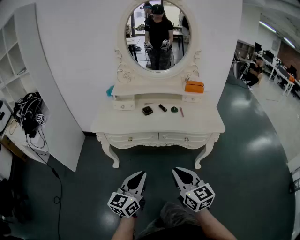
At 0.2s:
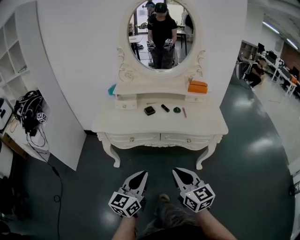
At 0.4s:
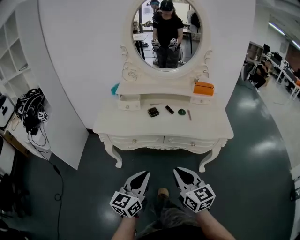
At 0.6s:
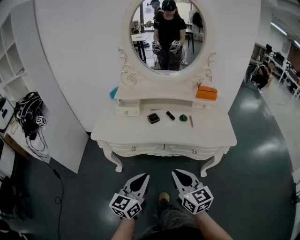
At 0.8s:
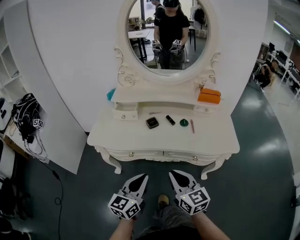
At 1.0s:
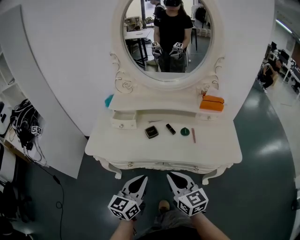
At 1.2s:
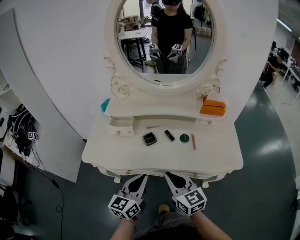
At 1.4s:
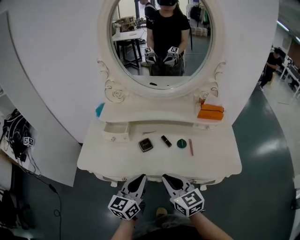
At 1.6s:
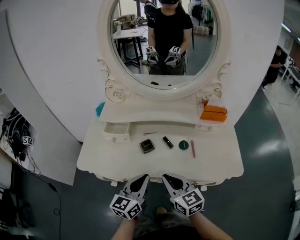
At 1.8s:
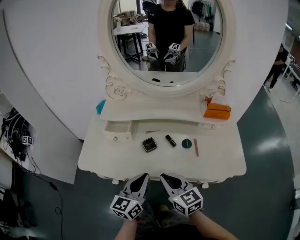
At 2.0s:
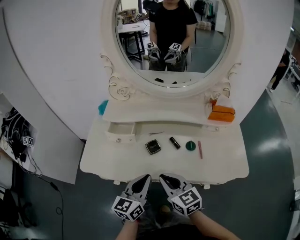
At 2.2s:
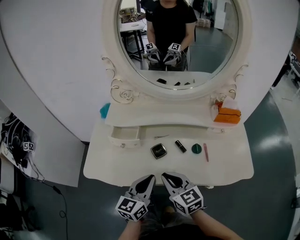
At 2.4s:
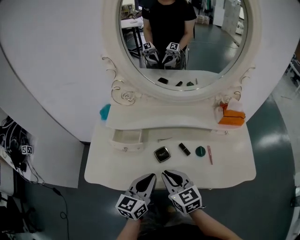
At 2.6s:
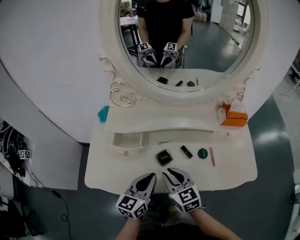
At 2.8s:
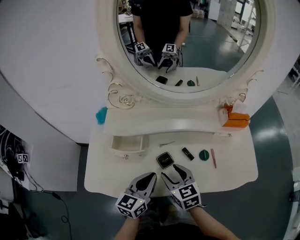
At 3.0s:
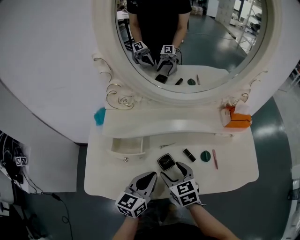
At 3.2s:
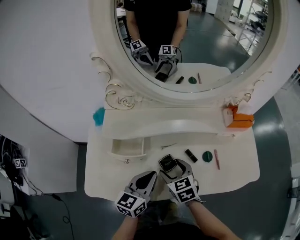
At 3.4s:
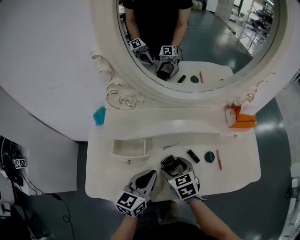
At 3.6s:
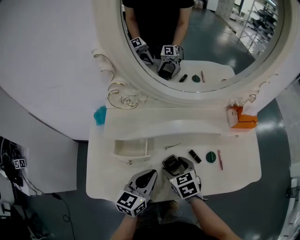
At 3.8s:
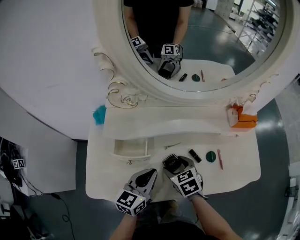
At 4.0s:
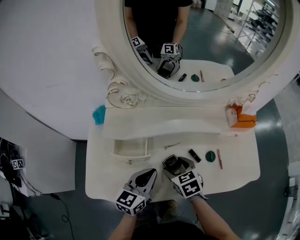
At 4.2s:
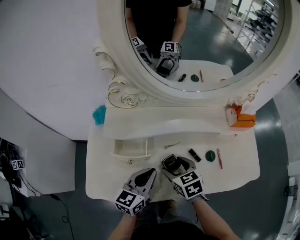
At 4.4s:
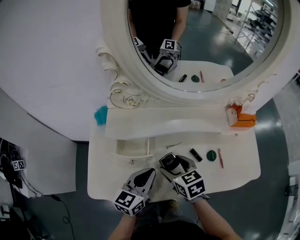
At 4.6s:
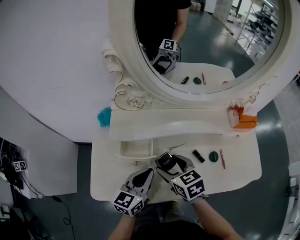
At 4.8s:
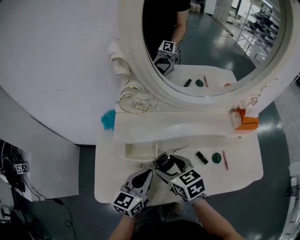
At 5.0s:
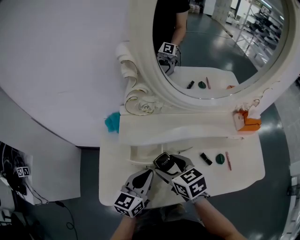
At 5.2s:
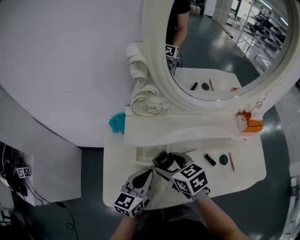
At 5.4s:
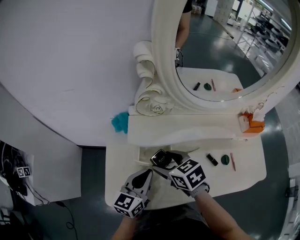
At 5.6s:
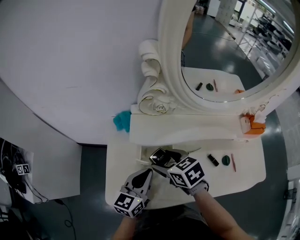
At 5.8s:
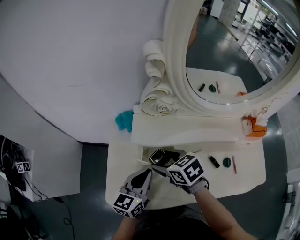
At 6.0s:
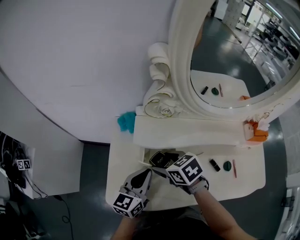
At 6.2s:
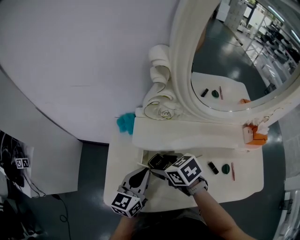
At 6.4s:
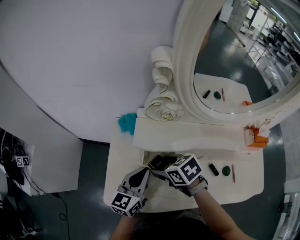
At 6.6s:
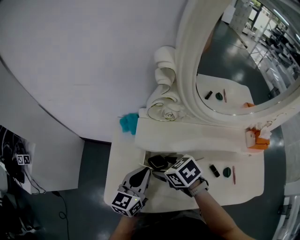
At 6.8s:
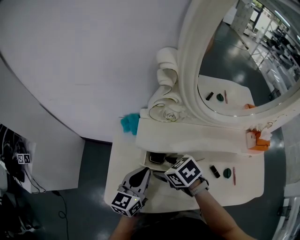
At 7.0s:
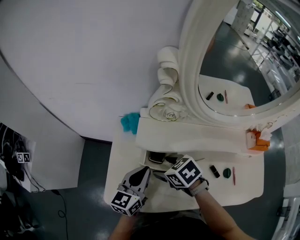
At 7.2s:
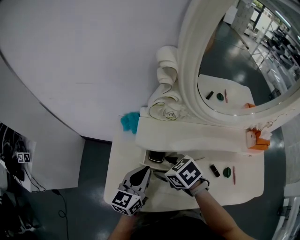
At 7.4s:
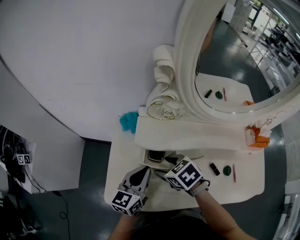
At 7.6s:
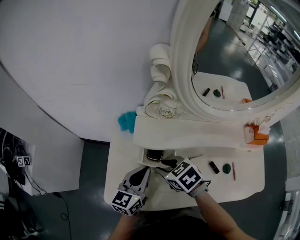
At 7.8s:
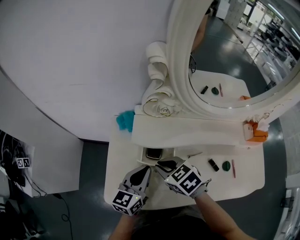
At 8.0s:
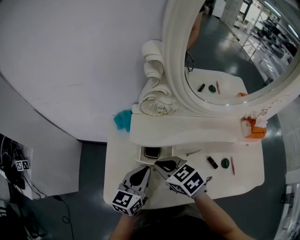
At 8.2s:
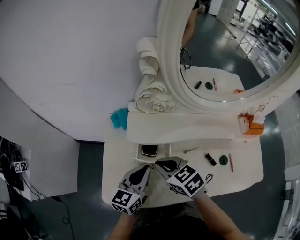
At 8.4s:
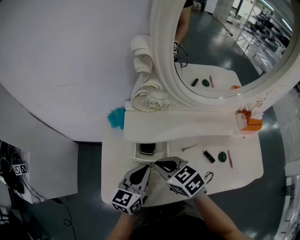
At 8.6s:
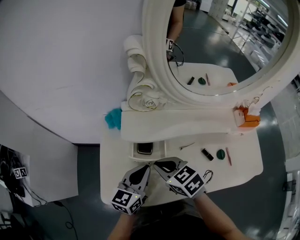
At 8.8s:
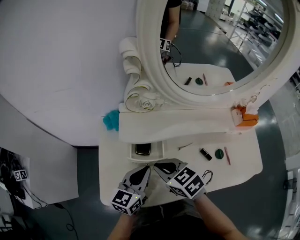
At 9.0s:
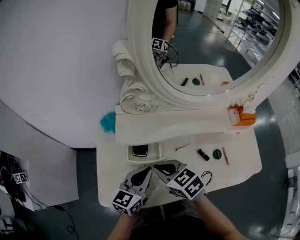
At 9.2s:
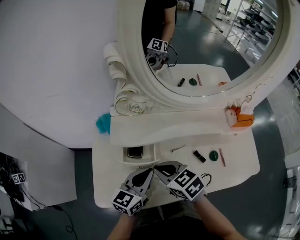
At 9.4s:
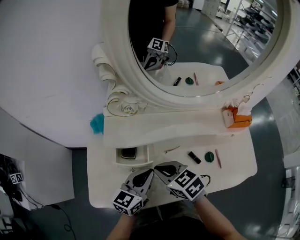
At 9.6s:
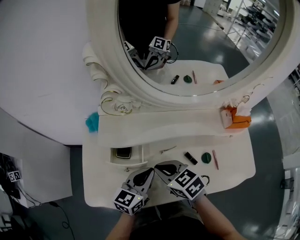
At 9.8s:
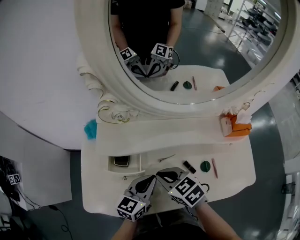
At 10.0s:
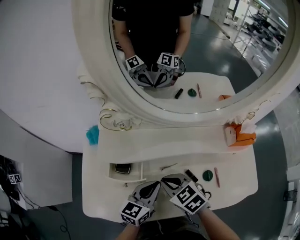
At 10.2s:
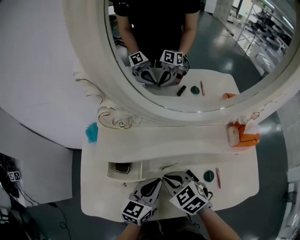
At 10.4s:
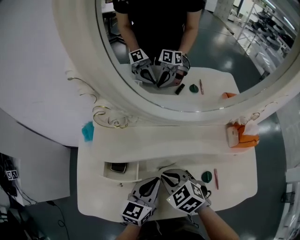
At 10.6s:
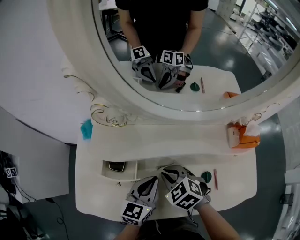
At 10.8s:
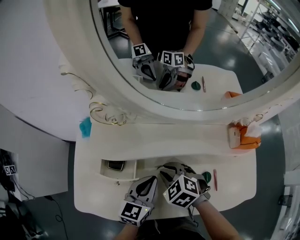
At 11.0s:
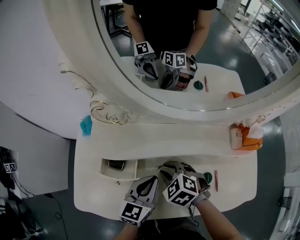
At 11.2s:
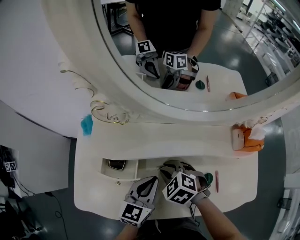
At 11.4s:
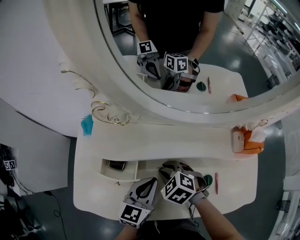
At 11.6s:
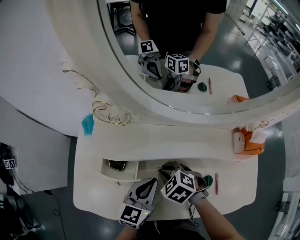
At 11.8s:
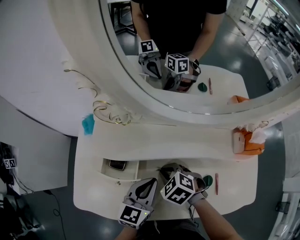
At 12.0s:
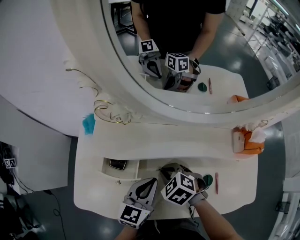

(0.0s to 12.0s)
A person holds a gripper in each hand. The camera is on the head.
0.0s - 1.6s: The grippers both shift forward by some 30 cm.
1.6s - 3.0s: The left gripper is displaced forward and to the left by some 15 cm, while the right gripper heads forward, downward and to the left, covering some 20 cm, swivels about 20 degrees, and opens up.
3.0s - 4.4s: The right gripper moves roughly 5 cm.
4.4s - 6.0s: Both grippers travel together to the left and forward, approximately 15 cm. The right gripper turns by some 20 degrees.
6.0s - 7.6s: The right gripper closes its fingers.
7.6s - 9.0s: The right gripper ends up some 5 cm from where it was, and closes its fingers; the left gripper moves to the right, some 5 cm.
9.0s - 10.4s: Both grippers move to the right, approximately 15 cm. The right gripper turns by approximately 20 degrees.
10.4s - 12.0s: The grippers make only small movements.

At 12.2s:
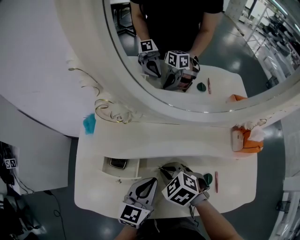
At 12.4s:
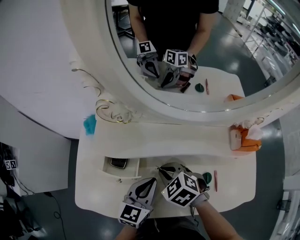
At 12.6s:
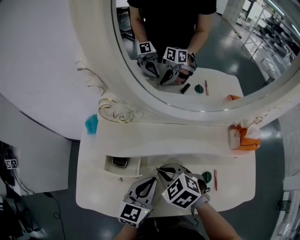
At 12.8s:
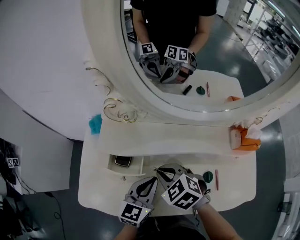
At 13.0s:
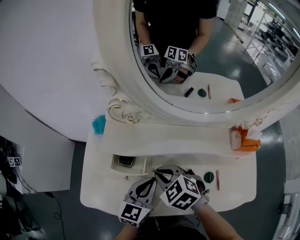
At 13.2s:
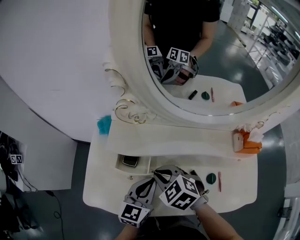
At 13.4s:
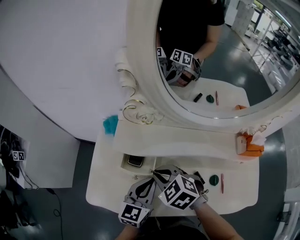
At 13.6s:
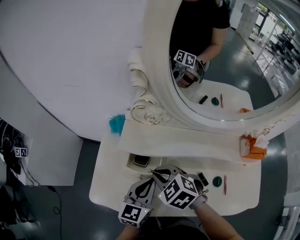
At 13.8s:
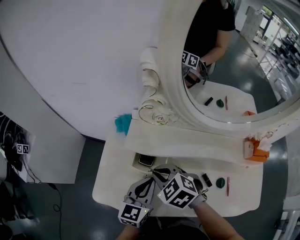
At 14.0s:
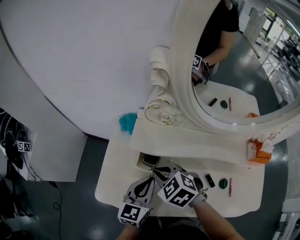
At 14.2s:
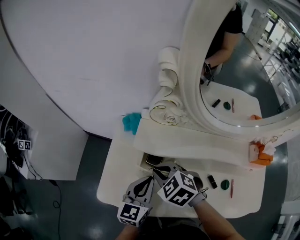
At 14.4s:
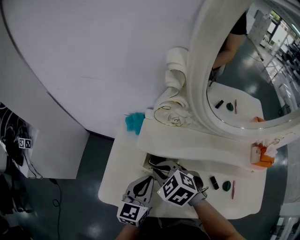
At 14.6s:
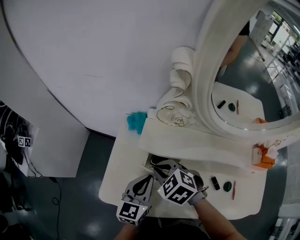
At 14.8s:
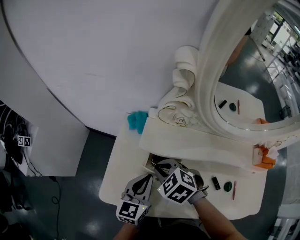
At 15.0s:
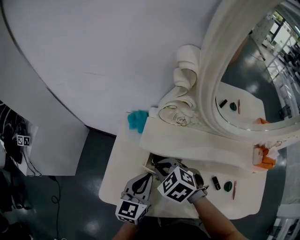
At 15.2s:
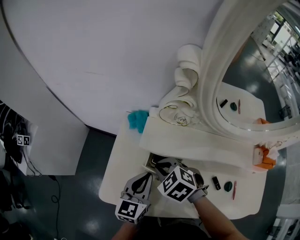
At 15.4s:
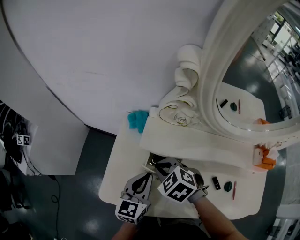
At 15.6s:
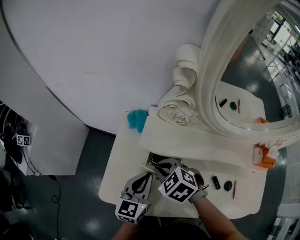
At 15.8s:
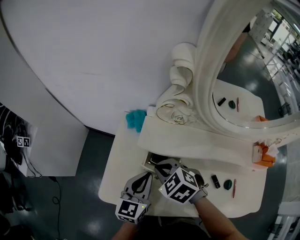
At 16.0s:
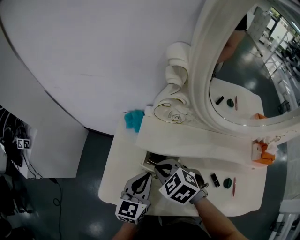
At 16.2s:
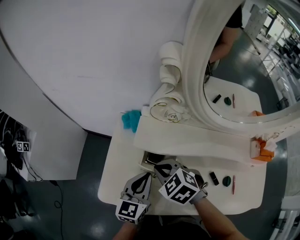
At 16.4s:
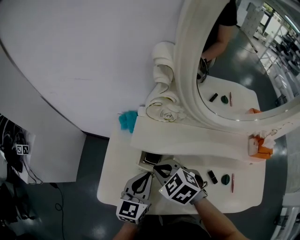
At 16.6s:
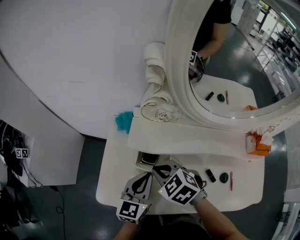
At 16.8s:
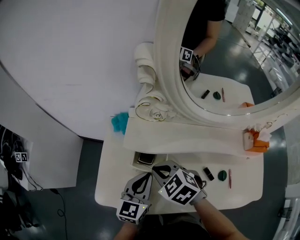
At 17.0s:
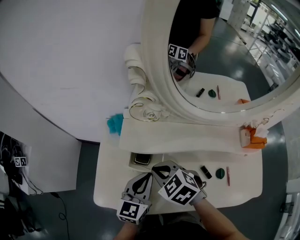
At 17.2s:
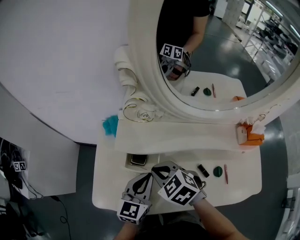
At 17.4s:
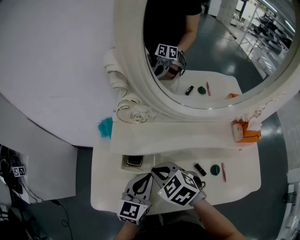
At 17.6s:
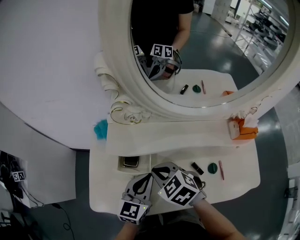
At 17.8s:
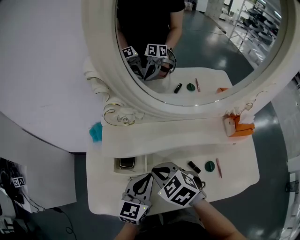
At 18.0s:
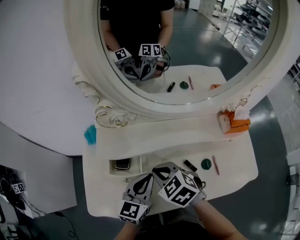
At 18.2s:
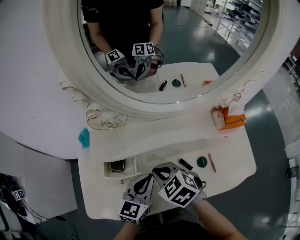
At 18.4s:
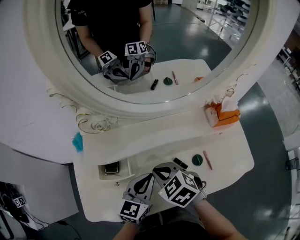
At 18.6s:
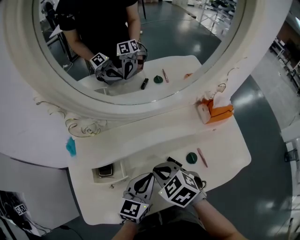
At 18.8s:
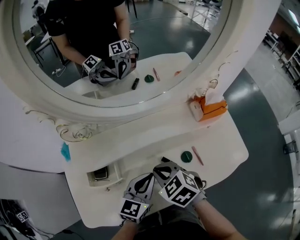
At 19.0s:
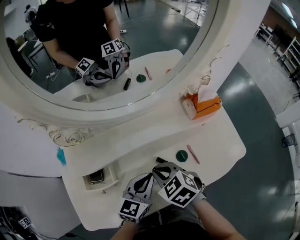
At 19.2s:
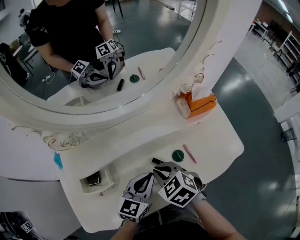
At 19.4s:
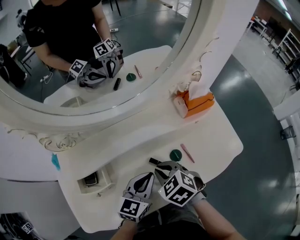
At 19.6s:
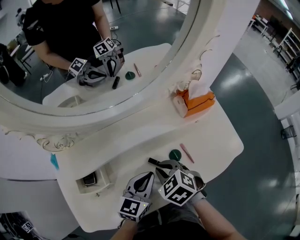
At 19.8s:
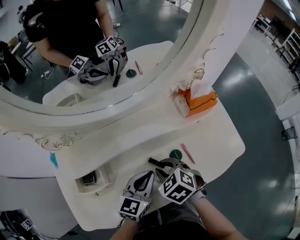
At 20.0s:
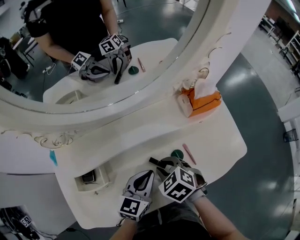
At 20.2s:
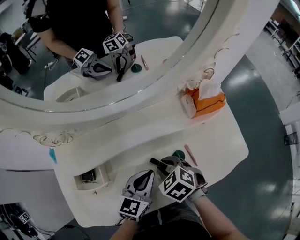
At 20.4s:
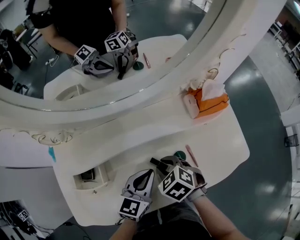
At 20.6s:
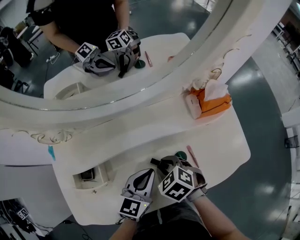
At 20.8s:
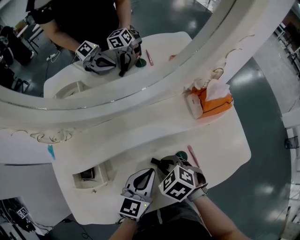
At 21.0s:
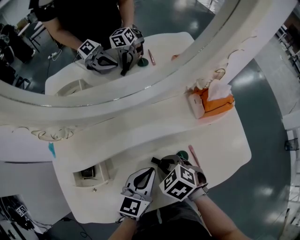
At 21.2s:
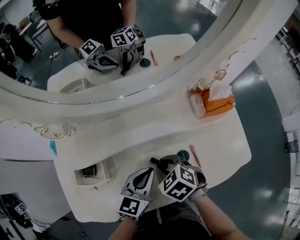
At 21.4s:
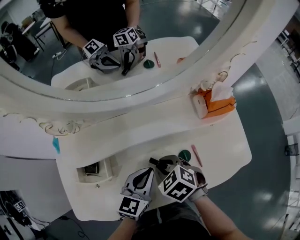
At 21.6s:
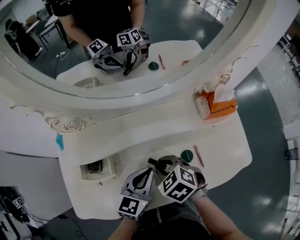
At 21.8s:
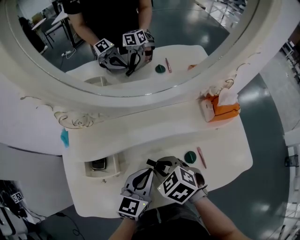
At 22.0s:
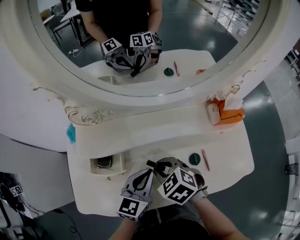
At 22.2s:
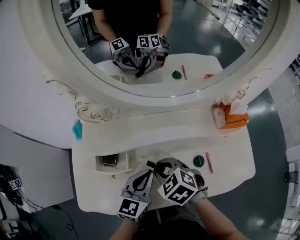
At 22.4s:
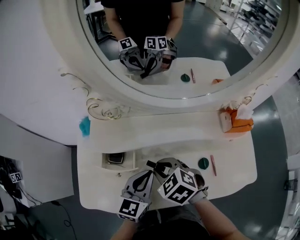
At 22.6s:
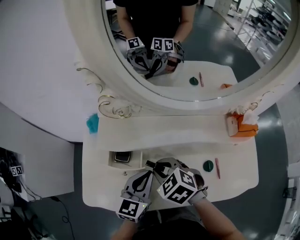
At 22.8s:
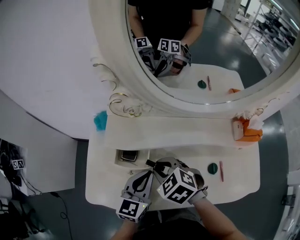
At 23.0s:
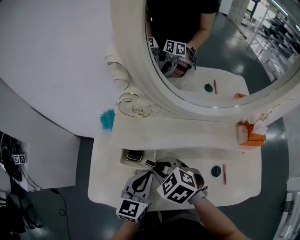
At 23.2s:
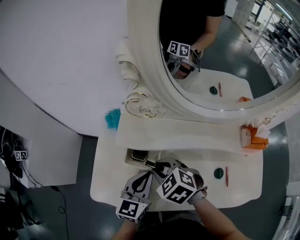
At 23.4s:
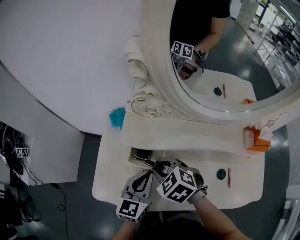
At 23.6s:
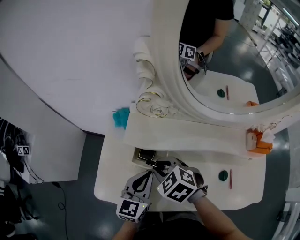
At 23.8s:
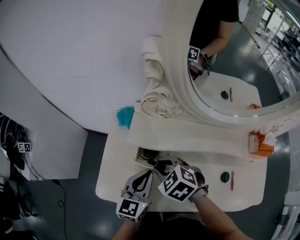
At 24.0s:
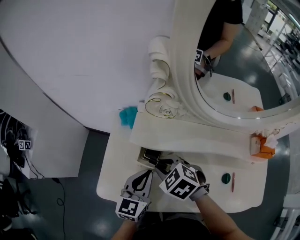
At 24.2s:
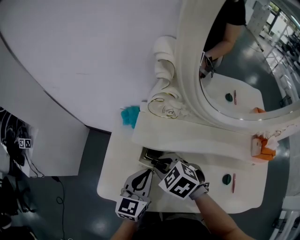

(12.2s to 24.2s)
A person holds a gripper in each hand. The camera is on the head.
12.2s - 13.8s: The left gripper is displaced to the left by some 10 cm. Meanwhile the right gripper moves to the left and upward, about 15 cm.
13.8s - 15.2s: The left gripper moves to the left, some 5 cm. The right gripper ends up about 5 cm from where it was.
15.2s - 16.6s: The grippers make only small movements.
16.6s - 18.2s: The two grippers go about 15 cm to the right. The left gripper swivels about 20 degrees.
18.2s - 19.8s: The grippers both shift to the right by roughly 15 cm. The right gripper rotates approximately 20 degrees.
19.8s - 21.2s: The grippers stay close to where they were, moving slightly.
21.2s - 22.6s: The left gripper is displaced to the left by approximately 15 cm, and rotates about 20 degrees. Meanwhile the right gripper travels to the left and upward by about 15 cm, and changes its angle by about 20 degrees.
22.6s - 24.2s: The two grippers go roughly 10 cm to the left.
